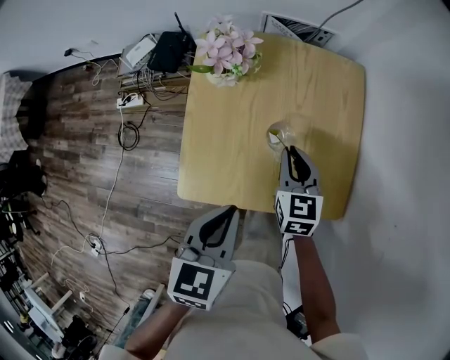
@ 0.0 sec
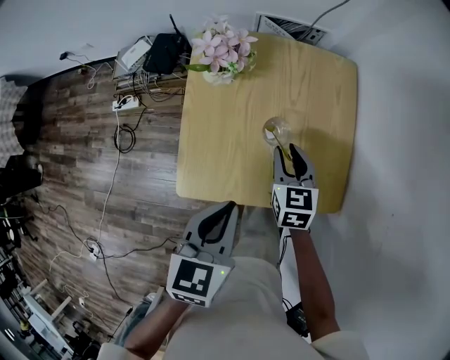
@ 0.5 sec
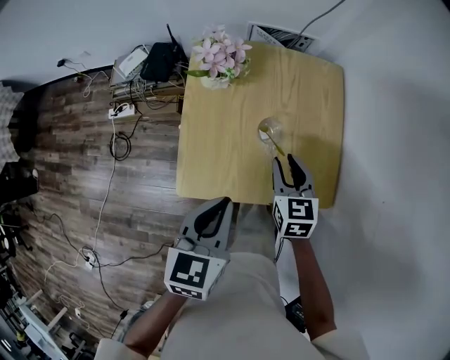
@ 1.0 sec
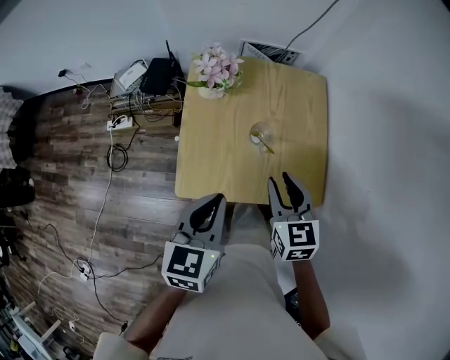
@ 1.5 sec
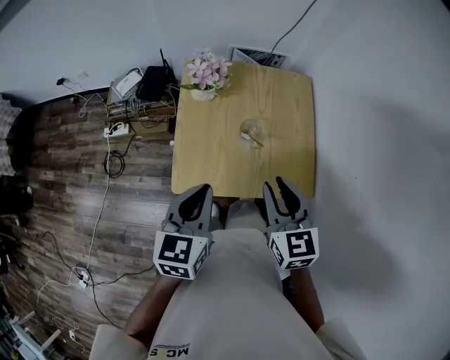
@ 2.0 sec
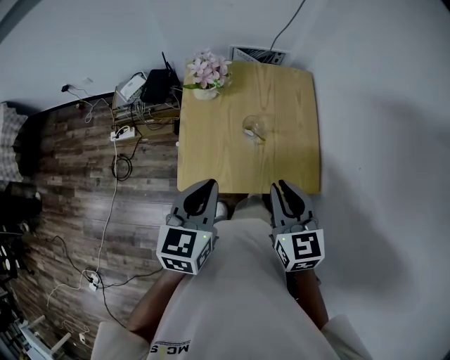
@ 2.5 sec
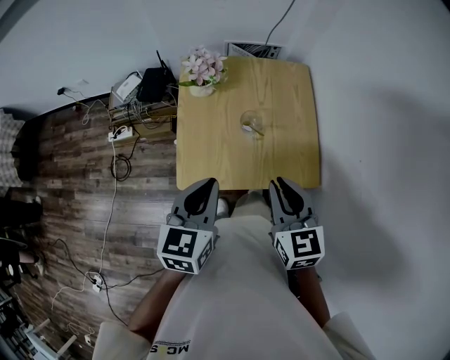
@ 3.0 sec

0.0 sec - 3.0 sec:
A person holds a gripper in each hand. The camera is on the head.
0.0 sec - 1.5 sec: The right gripper goes roughly 15 cm upward and backward, while the left gripper moves upward, some 5 cm.
1.5 sec - 3.0 sec: The right gripper travels backward and upward by approximately 10 cm.

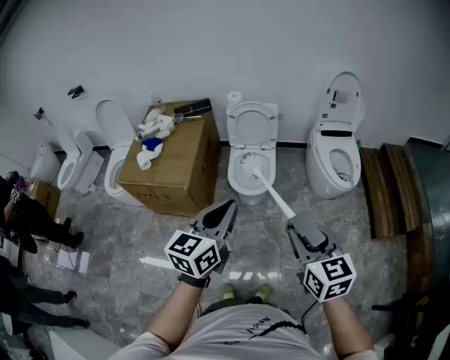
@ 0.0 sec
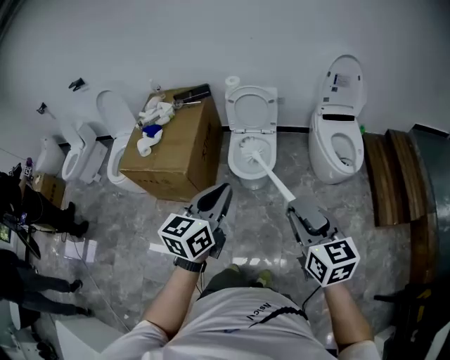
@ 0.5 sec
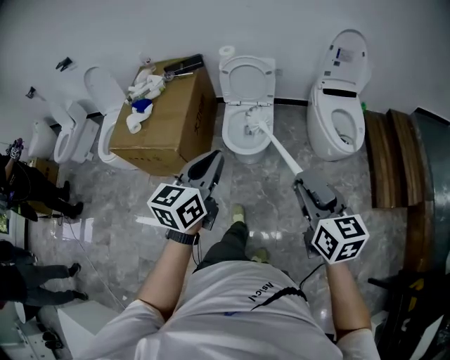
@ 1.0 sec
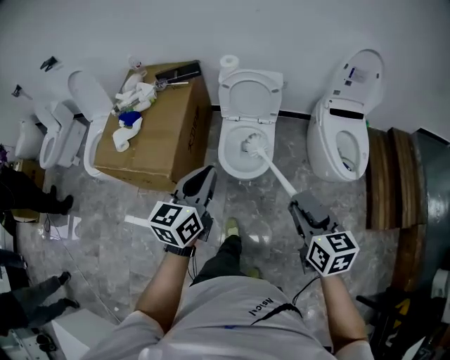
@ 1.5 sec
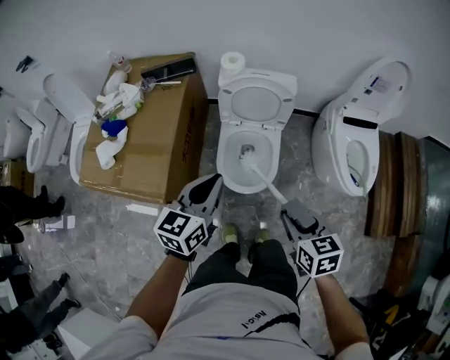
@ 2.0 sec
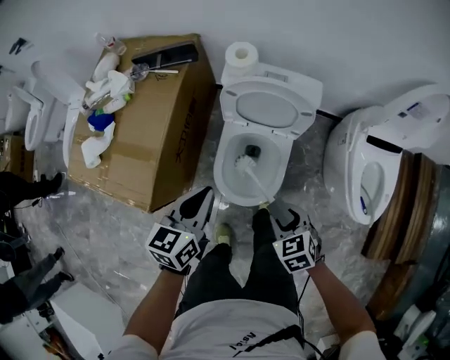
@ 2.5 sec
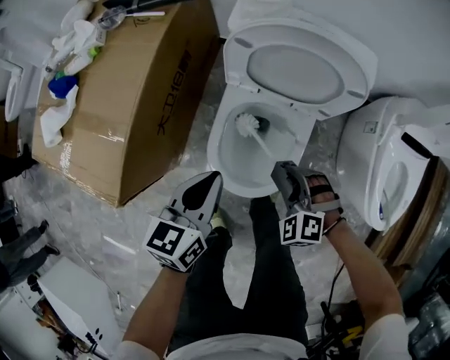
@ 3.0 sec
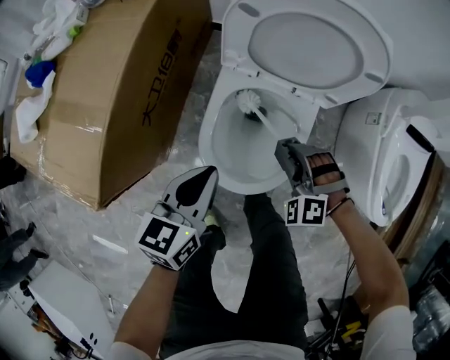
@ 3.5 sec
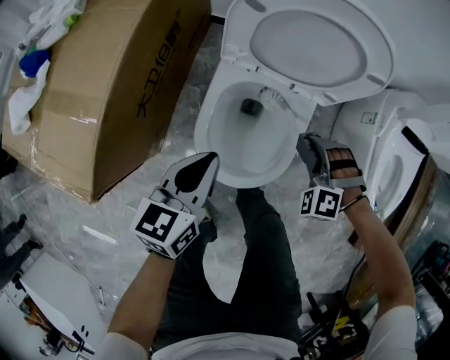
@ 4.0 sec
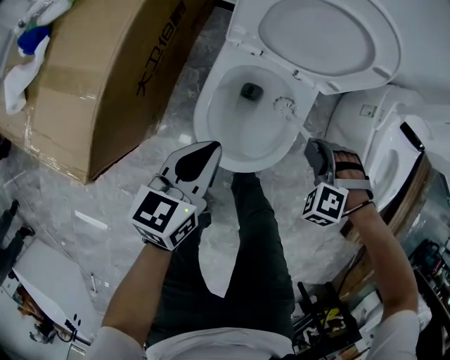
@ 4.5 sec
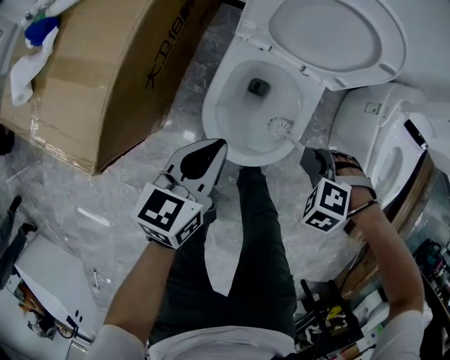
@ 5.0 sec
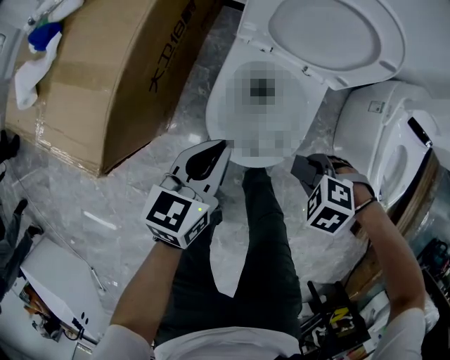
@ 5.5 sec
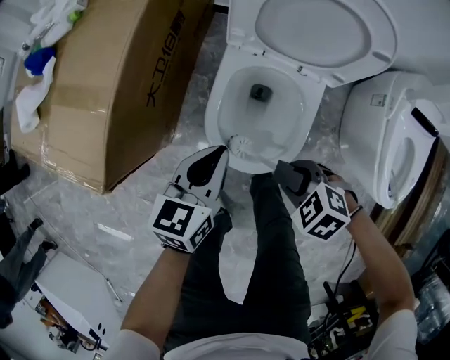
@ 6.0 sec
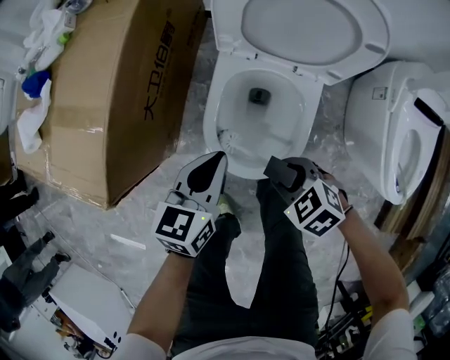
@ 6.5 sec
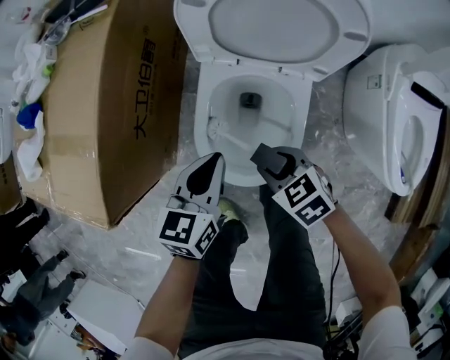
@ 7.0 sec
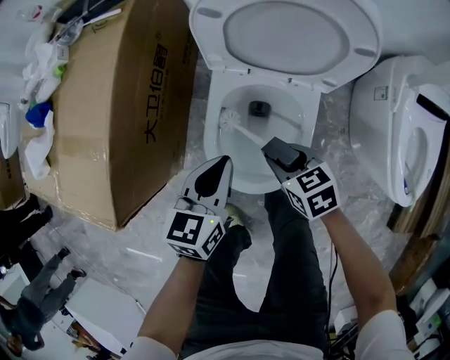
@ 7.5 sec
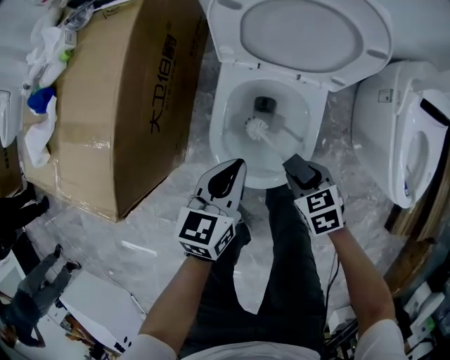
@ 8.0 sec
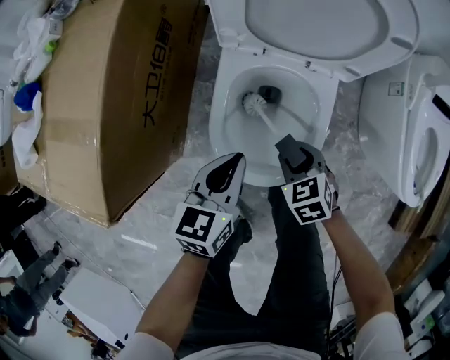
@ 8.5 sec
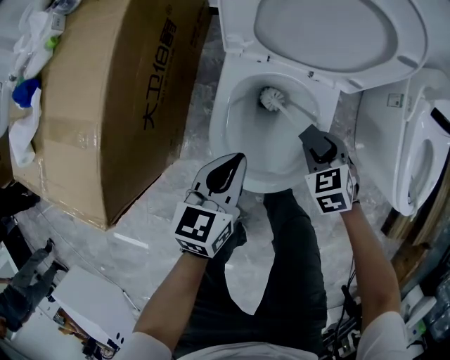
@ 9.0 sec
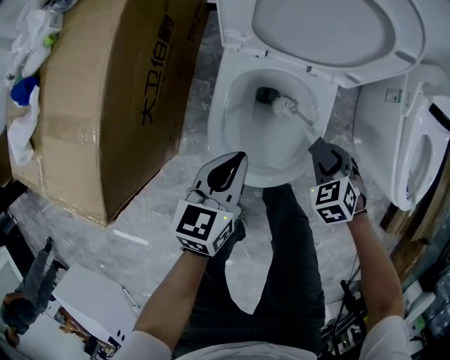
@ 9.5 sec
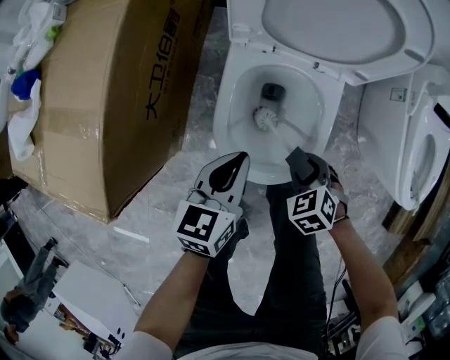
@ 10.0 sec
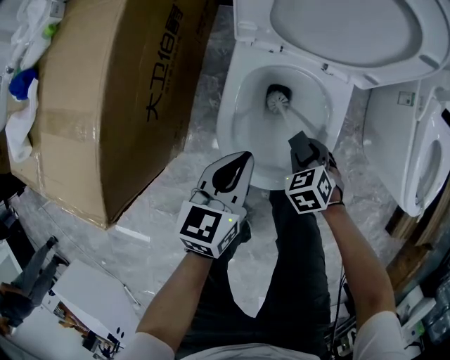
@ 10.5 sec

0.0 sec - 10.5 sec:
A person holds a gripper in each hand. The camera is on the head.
0.0 sec - 2.0 sec: The two grippers go roughly 40 cm forward and downward. The right gripper swivels approximately 30 degrees.
2.0 sec - 4.0 sec: The left gripper travels downward by about 35 cm. The right gripper travels downward and forward by about 50 cm, and rolls counterclockwise, seen from behind, by about 90 degrees.
4.0 sec - 6.5 sec: The right gripper moves some 15 cm, and rotates about 60 degrees.
6.5 sec - 8.5 sec: The left gripper is displaced downward by about 5 cm. Meanwhile the right gripper heads downward and forward, covering some 10 cm, and turns by some 30 degrees.
8.5 sec - 10.5 sec: The right gripper moves forward and backward over roughly 10 cm, changing direction 2 times.

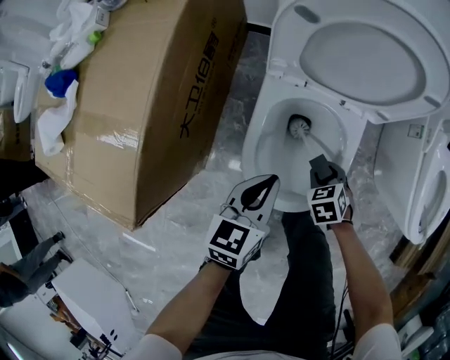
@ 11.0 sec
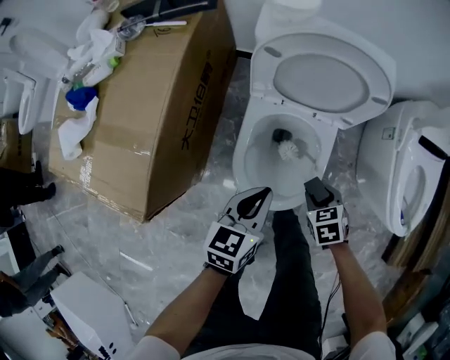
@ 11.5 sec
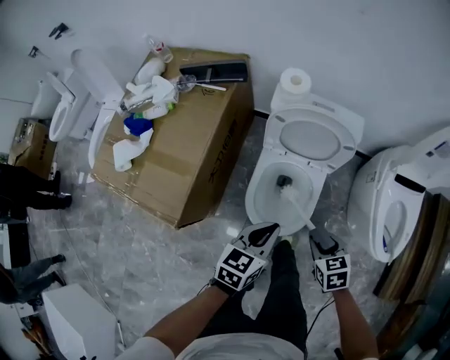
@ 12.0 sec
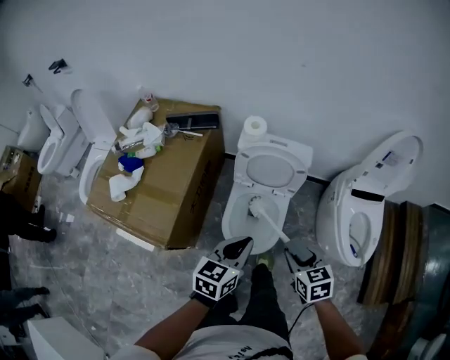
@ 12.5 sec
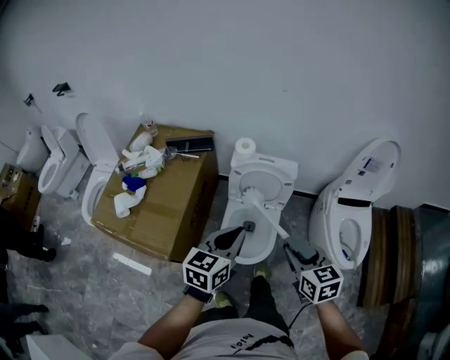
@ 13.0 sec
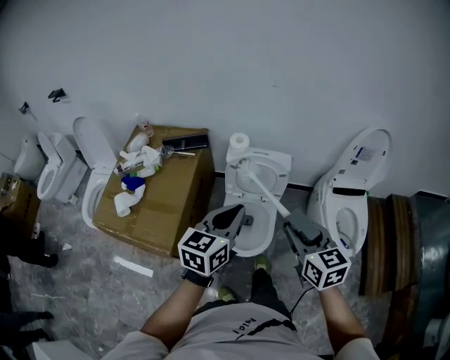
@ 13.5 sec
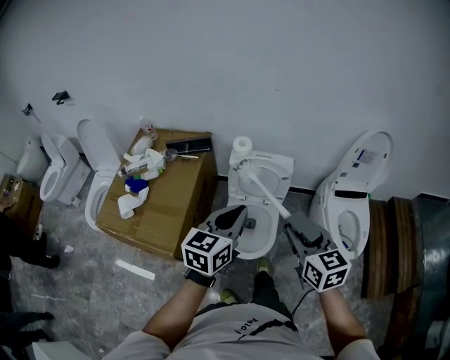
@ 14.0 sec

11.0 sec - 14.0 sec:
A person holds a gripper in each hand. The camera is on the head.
11.0 sec - 12.5 sec: The grippers both shift upward by approximately 40 cm. The right gripper turns by about 30 degrees.
12.5 sec - 14.0 sec: Both grippers move upward, approximately 20 cm. The right gripper changes its angle by roughly 20 degrees.

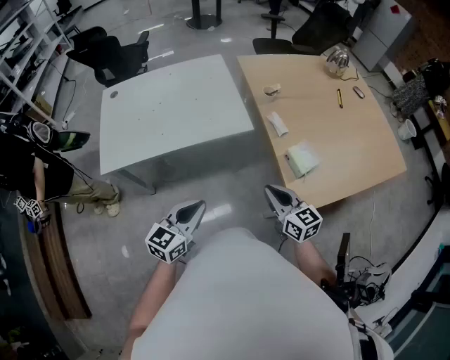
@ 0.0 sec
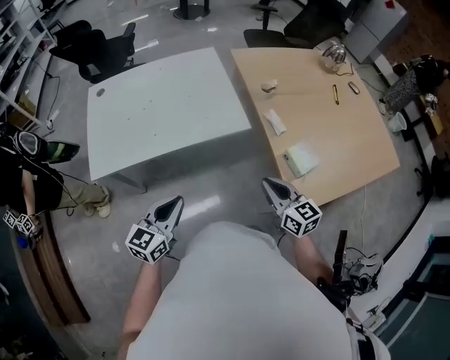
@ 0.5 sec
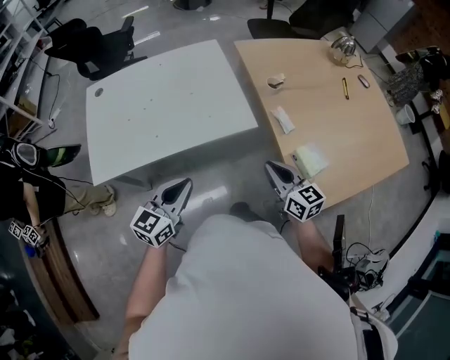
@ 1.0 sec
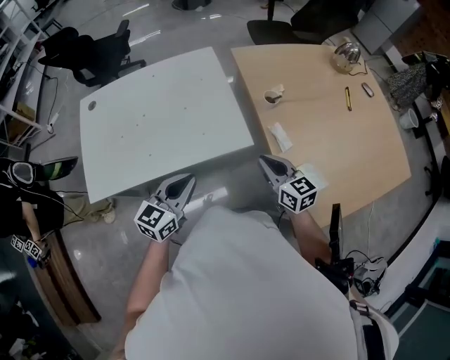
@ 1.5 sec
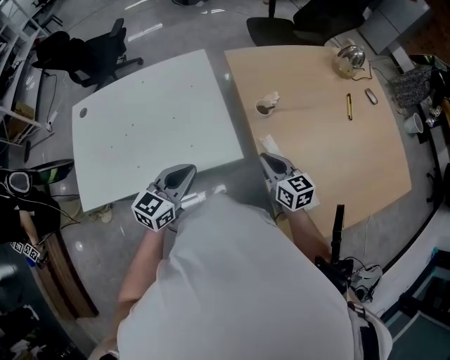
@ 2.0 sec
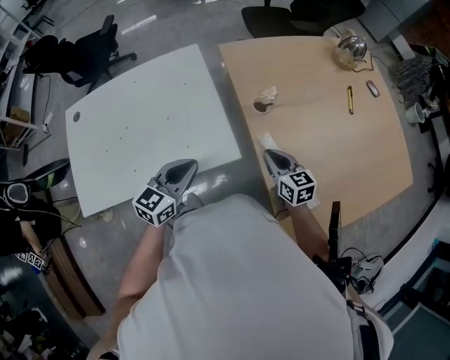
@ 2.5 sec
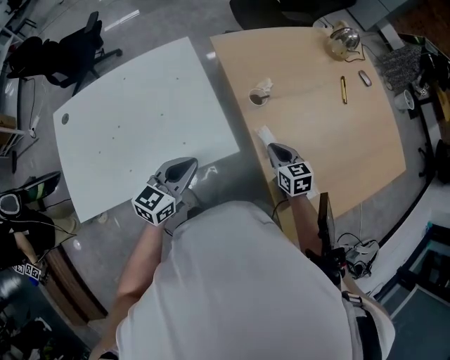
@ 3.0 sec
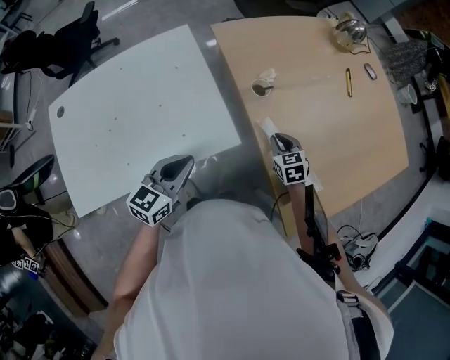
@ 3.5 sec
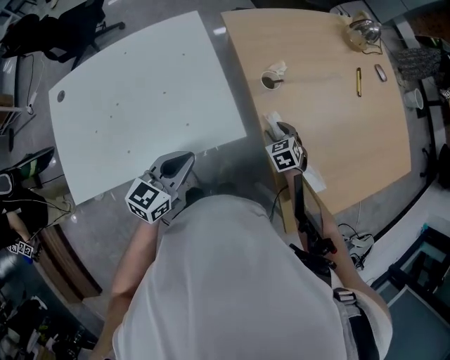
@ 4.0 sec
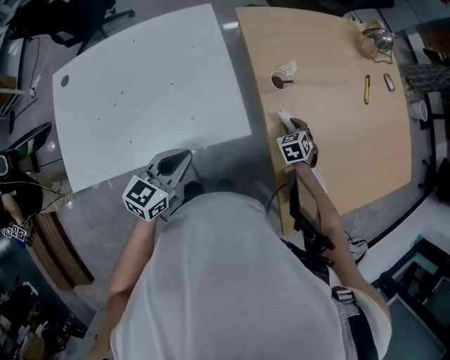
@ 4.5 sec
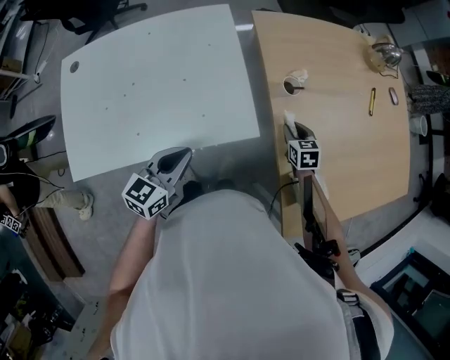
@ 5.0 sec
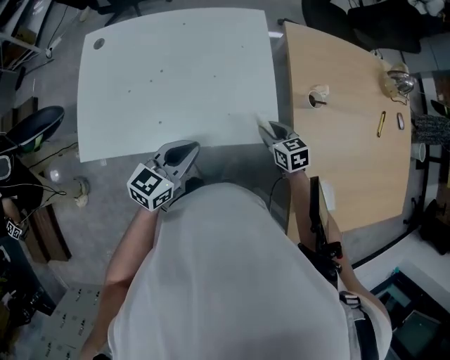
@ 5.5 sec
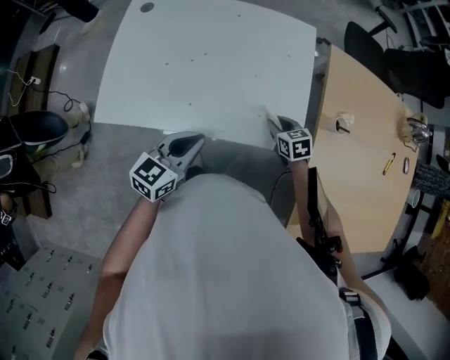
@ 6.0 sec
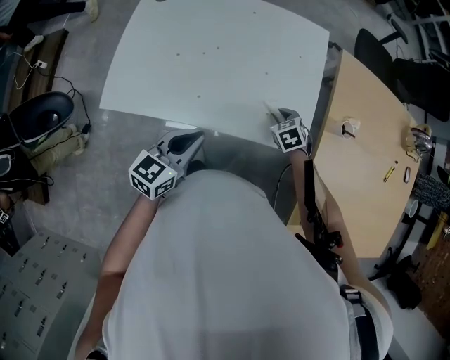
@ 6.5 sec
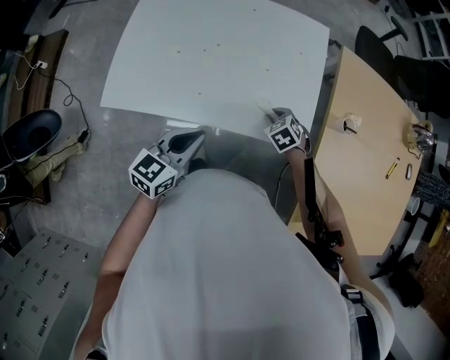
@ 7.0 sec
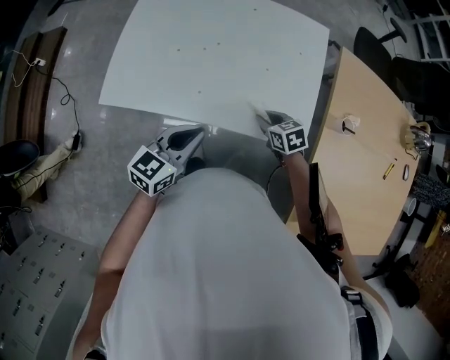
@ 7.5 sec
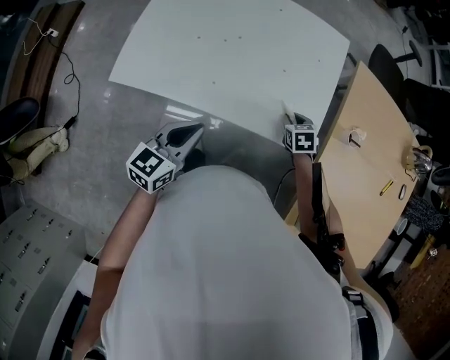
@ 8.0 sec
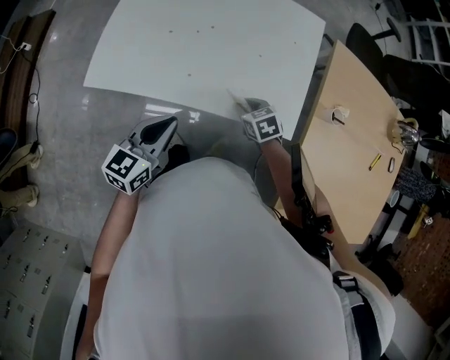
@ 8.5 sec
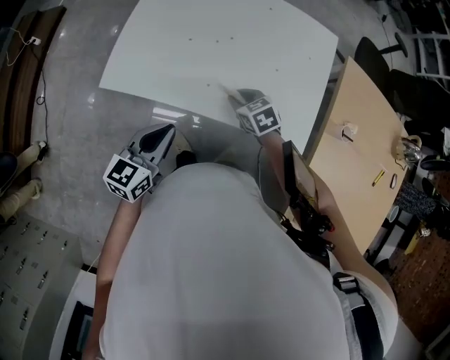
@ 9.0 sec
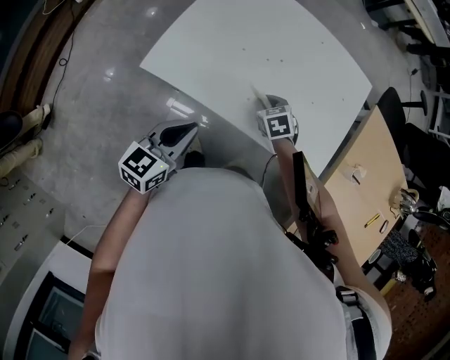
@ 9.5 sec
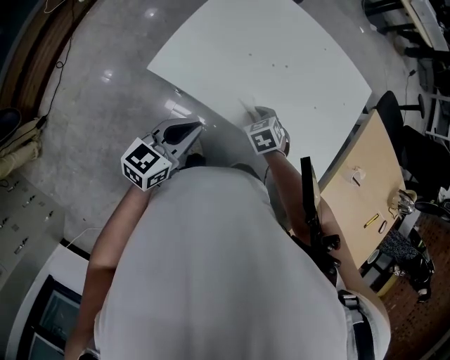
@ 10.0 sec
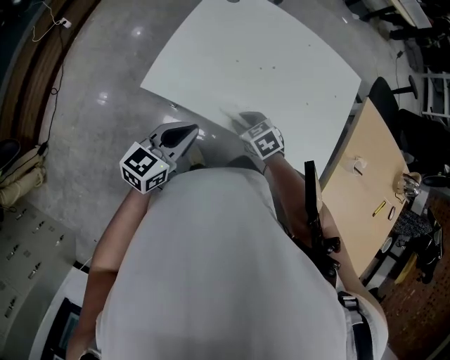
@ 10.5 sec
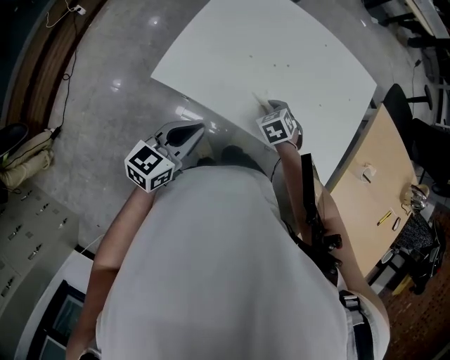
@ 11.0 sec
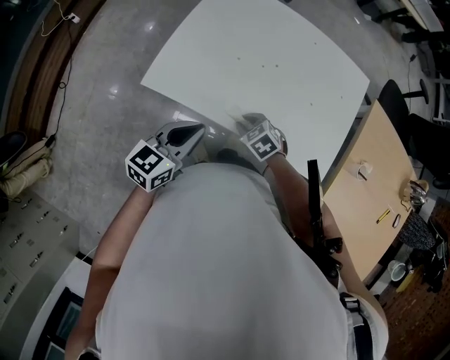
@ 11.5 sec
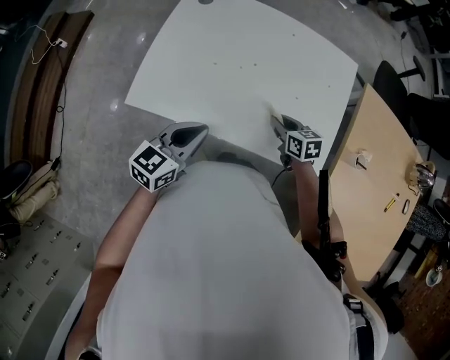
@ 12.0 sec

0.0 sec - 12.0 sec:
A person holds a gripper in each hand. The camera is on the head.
0.0 sec - 2.0 sec: Both grippers move forward, about 30 cm.
2.0 sec - 4.0 sec: The right gripper goes approximately 15 cm downward, angles its fingers downward, by some 30 degrees, and opens up.
4.0 sec - 6.0 sec: The left gripper shifts by roughly 15 cm, and swivels roughly 20 degrees; the right gripper shifts by about 25 cm, and rotates about 30 degrees.
6.0 sec - 8.0 sec: The left gripper moves some 5 cm.
8.0 sec - 10.0 sec: The left gripper moves to the left, roughly 15 cm; the right gripper goes approximately 25 cm to the left, and swivels some 30 degrees.
10.0 sec - 12.0 sec: The left gripper goes roughly 10 cm to the right and forward, while the right gripper moves left and right over roughly 20 cm, changing direction 3 times, and swivels about 40 degrees.
